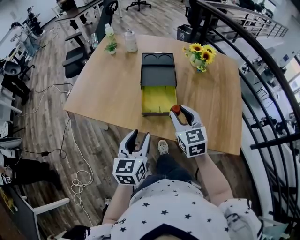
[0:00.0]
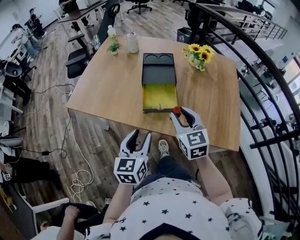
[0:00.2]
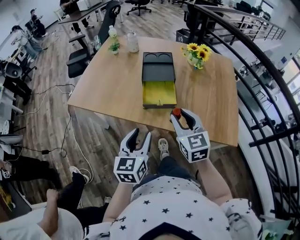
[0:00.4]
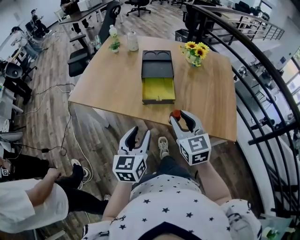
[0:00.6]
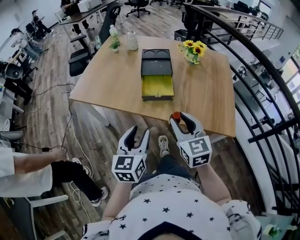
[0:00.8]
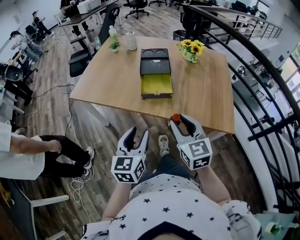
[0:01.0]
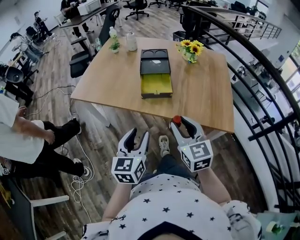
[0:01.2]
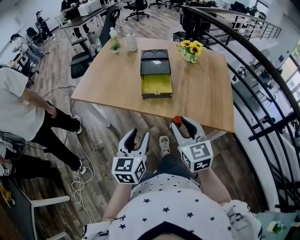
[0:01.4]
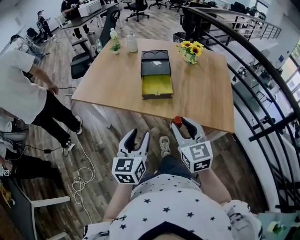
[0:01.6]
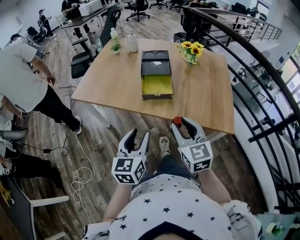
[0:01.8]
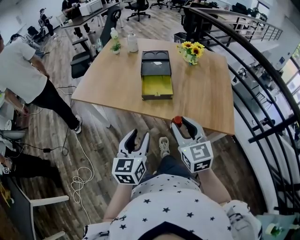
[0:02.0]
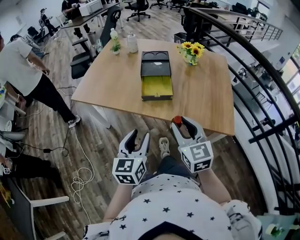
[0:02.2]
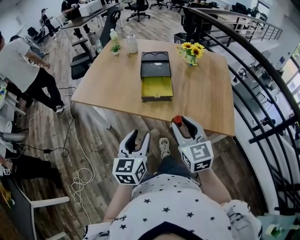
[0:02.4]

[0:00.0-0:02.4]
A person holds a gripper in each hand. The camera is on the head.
0:00.0 to 0:01.2: The grippers both shift backward by about 20 cm.
0:01.2 to 0:02.4: The two grippers keep their place.

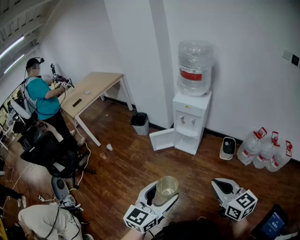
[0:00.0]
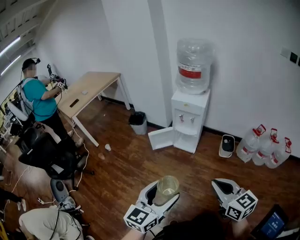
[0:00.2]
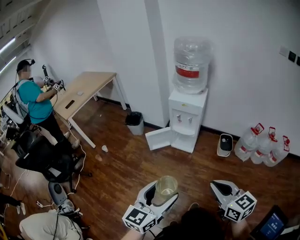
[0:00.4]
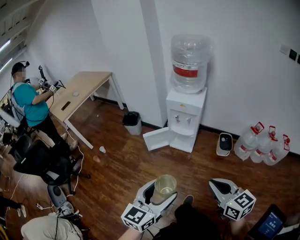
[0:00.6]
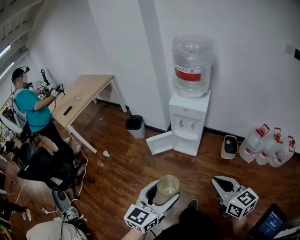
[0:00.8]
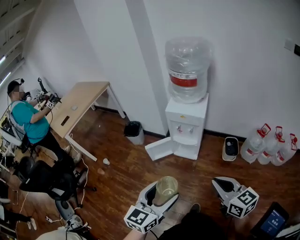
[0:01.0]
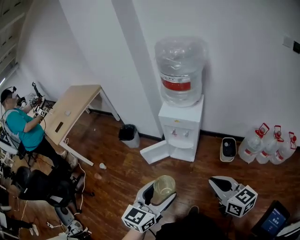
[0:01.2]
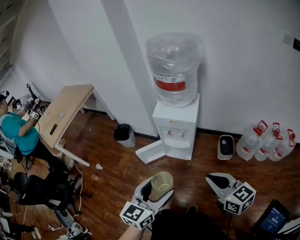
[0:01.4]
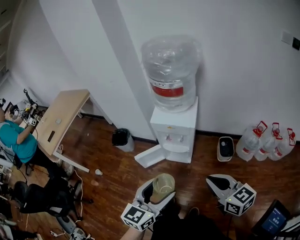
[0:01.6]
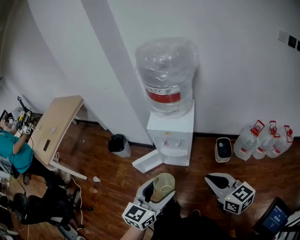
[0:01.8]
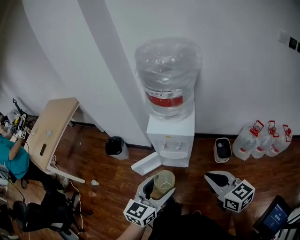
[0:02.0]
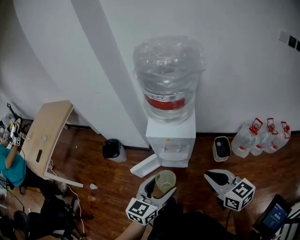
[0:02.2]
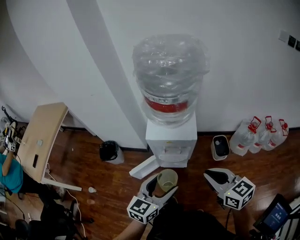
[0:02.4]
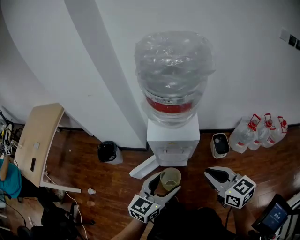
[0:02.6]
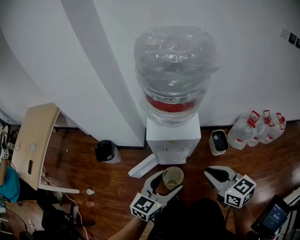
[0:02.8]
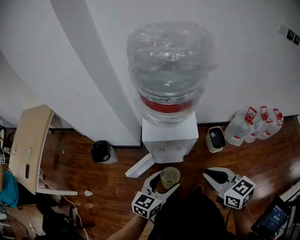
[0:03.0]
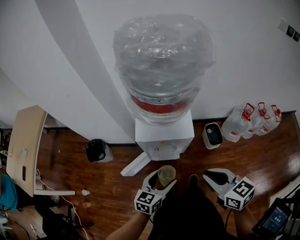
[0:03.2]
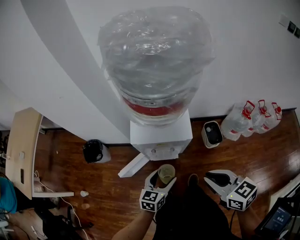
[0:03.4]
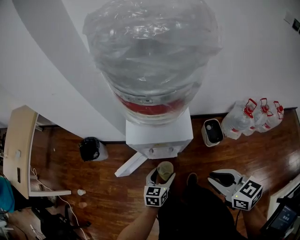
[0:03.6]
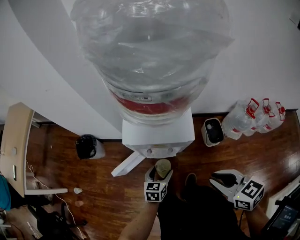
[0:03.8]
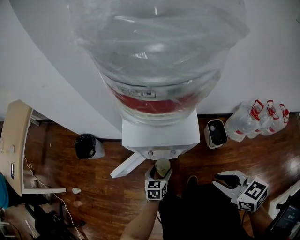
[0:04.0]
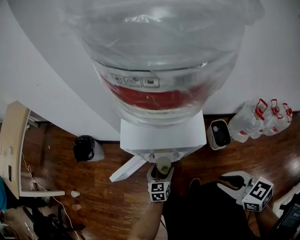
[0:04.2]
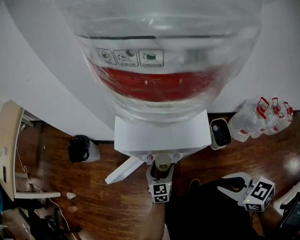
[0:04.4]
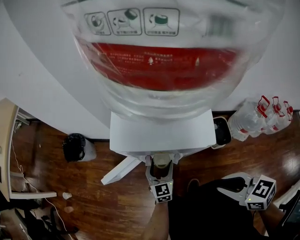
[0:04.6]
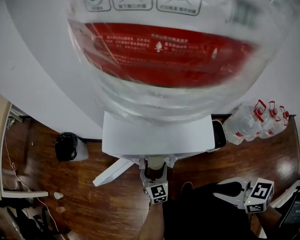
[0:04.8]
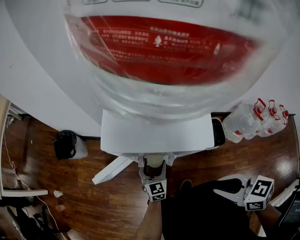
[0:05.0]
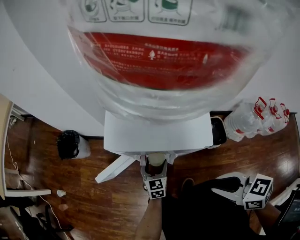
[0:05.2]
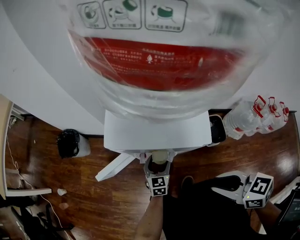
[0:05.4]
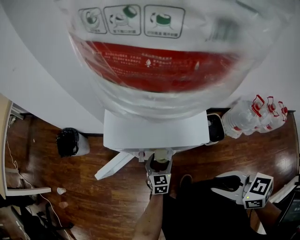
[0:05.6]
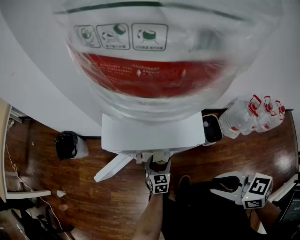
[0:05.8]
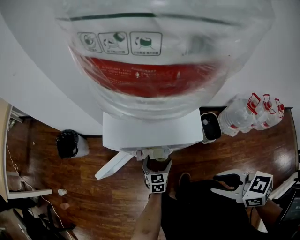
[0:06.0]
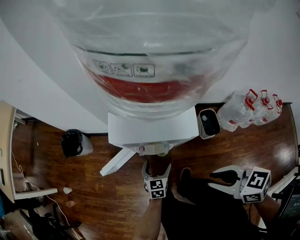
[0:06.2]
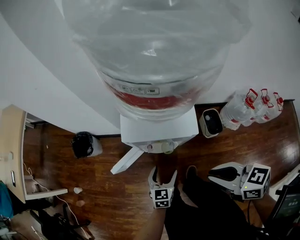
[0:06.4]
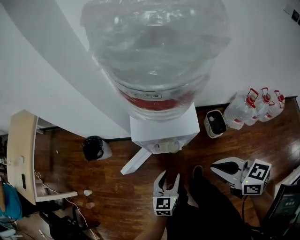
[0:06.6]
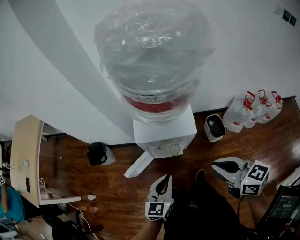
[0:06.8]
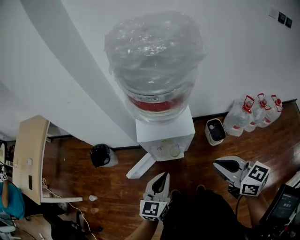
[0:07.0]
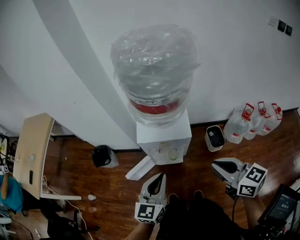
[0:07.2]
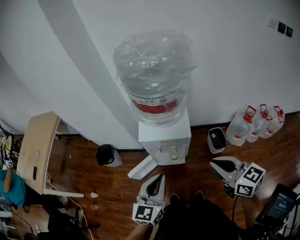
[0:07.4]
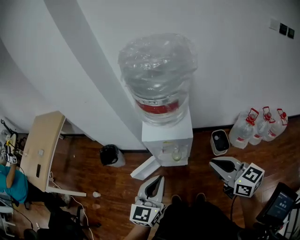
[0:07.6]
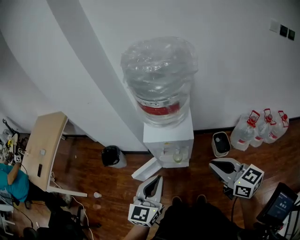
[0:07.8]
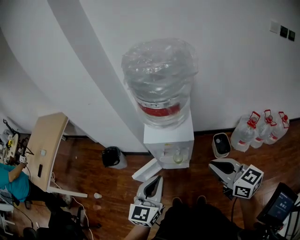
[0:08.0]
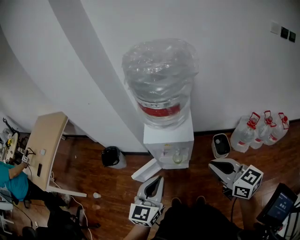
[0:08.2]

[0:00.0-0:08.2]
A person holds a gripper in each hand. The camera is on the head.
0:00.0 to 0:01.6: Both grippers move forward, about 30 cm.
0:01.6 to 0:03.2: The right gripper travels forward and to the left by roughly 20 cm; the left gripper moves forward and downward, some 30 cm, and turns by roughly 20 degrees.
0:03.2 to 0:05.0: The left gripper heads downward, covering approximately 35 cm, and changes its angle by about 30 degrees. Meanwhile the right gripper heads downward, covering roughly 25 cm, and turns by approximately 20 degrees.
0:05.0 to 0:06.6: The right gripper shifts approximately 20 cm upward, and closes its fingers. The left gripper heads upward and backward, covering approximately 30 cm.
0:06.6 to 0:08.2: The left gripper shifts about 25 cm upward, and closes up; the right gripper moves upward and backward, roughly 15 cm.

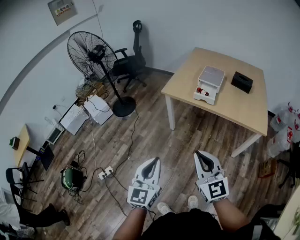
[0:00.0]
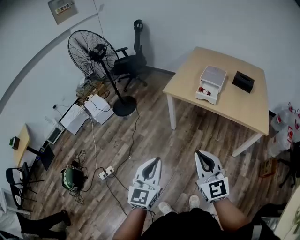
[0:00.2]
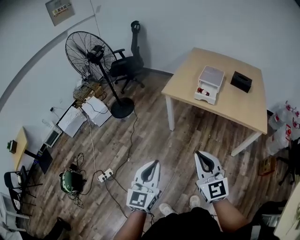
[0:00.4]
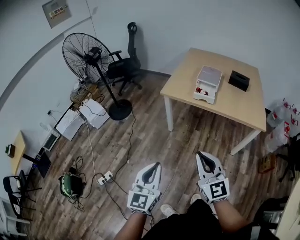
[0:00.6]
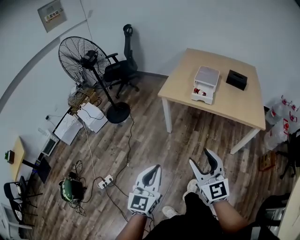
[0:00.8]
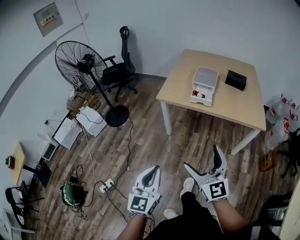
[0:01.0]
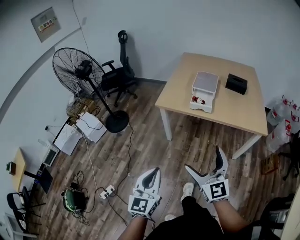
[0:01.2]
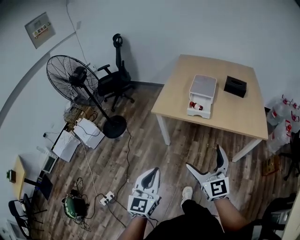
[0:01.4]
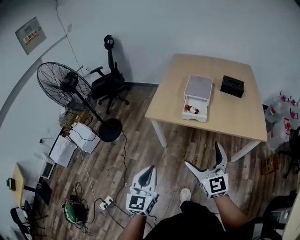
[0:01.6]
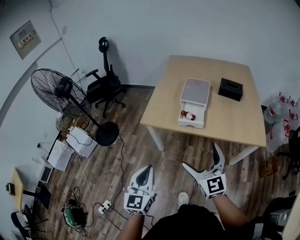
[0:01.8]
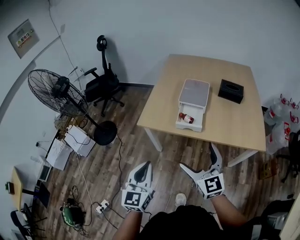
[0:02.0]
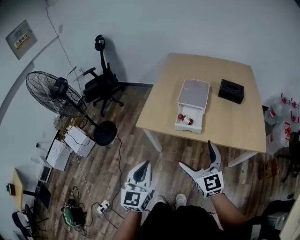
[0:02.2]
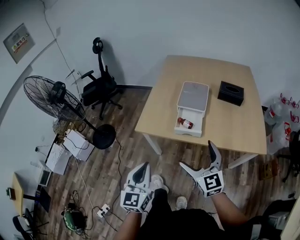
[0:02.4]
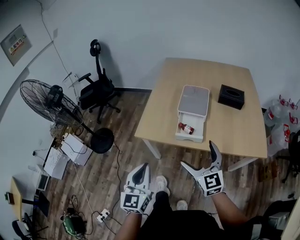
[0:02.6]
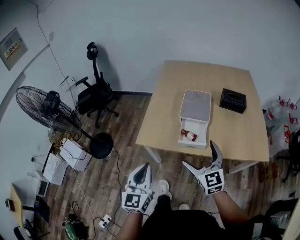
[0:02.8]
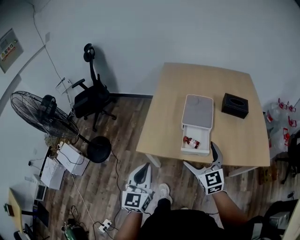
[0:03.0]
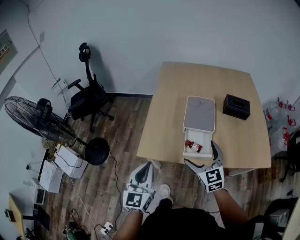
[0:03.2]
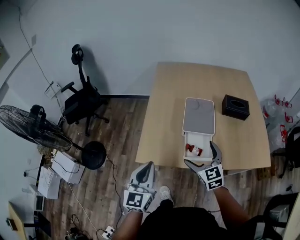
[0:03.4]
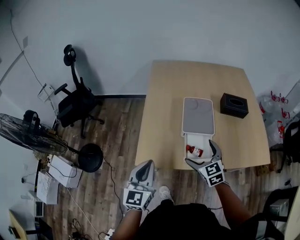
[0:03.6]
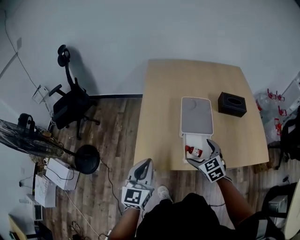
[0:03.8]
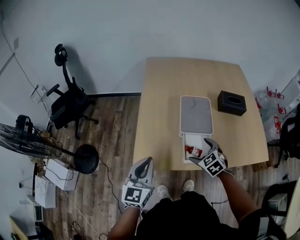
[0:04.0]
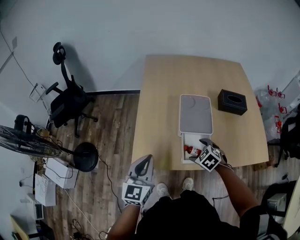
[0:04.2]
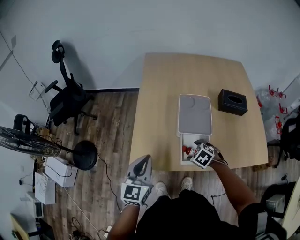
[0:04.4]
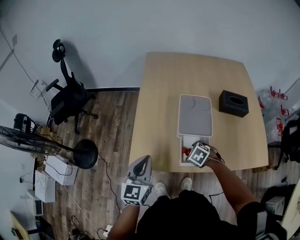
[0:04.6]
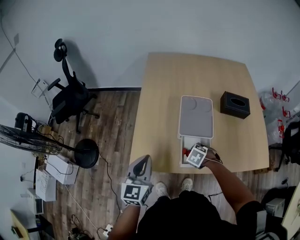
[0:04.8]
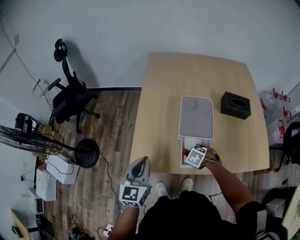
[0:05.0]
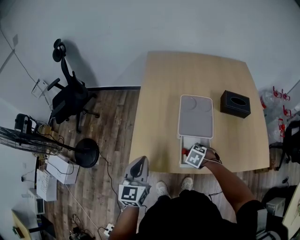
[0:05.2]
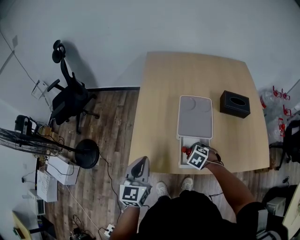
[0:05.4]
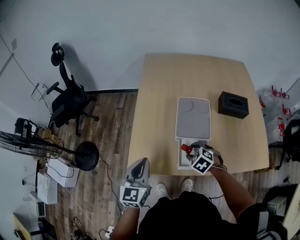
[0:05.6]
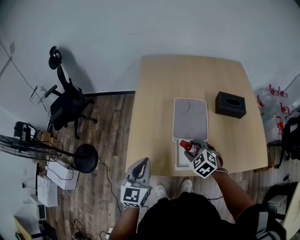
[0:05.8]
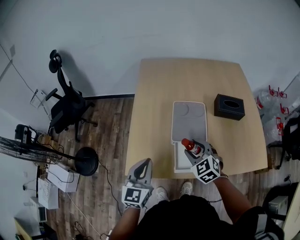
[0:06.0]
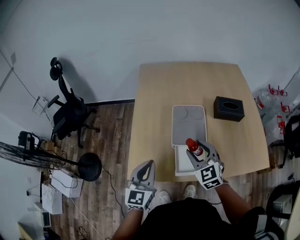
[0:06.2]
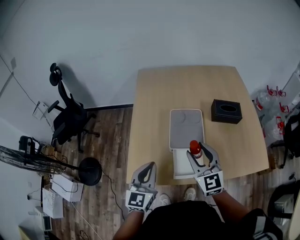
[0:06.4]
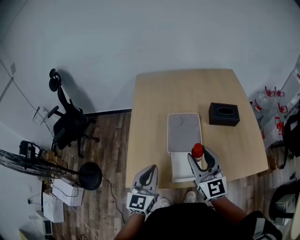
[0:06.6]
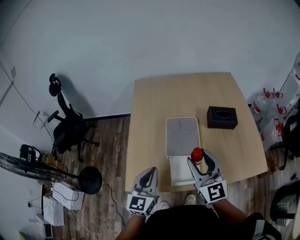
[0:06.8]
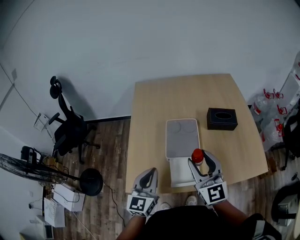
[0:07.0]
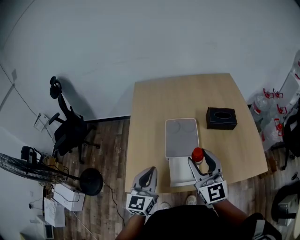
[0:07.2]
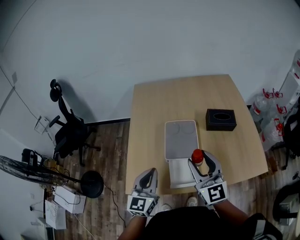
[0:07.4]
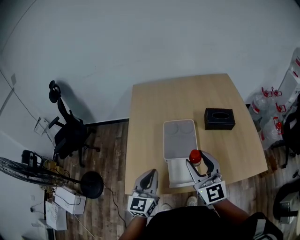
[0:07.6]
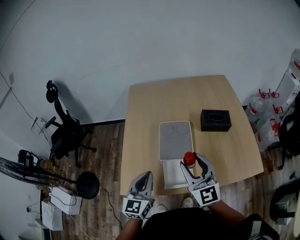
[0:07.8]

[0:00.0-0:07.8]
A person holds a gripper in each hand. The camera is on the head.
0:00.0 to 0:01.6: The grippers both shift forward by roughly 20 cm. The right gripper opens its fingers.
0:01.6 to 0:03.2: Both grippers travel together forward, roughly 30 cm.
0:03.2 to 0:04.6: The right gripper shifts some 25 cm downward and forward, tilts its fingers some 60 degrees downward, and closes its fingers, while the left gripper is displaced forward by some 15 cm.
0:04.6 to 0:06.2: The right gripper moves upward, some 20 cm, and tips its fingers upward by about 50 degrees; the left gripper ends up approximately 5 cm from where it was.
0:06.2 to 0:07.8: The left gripper shifts roughly 5 cm to the right; the right gripper goes some 10 cm upward, and turns by approximately 30 degrees.

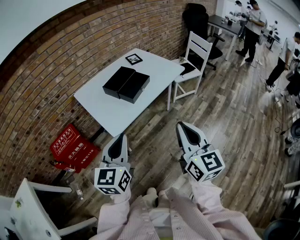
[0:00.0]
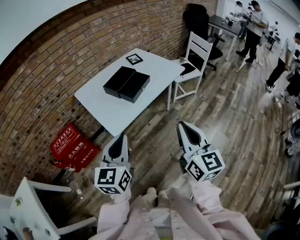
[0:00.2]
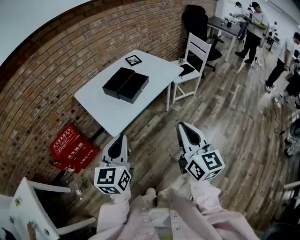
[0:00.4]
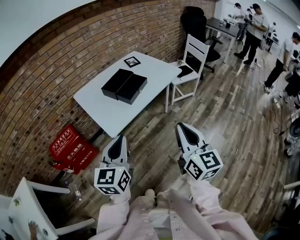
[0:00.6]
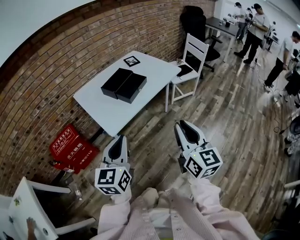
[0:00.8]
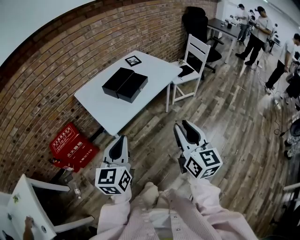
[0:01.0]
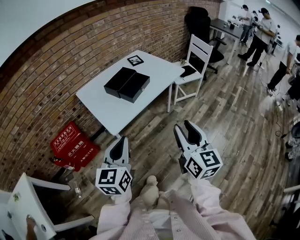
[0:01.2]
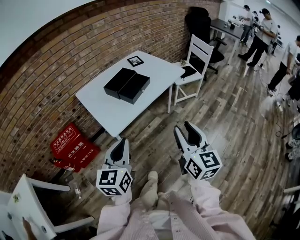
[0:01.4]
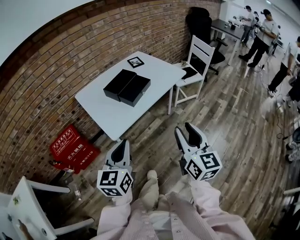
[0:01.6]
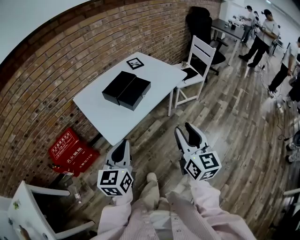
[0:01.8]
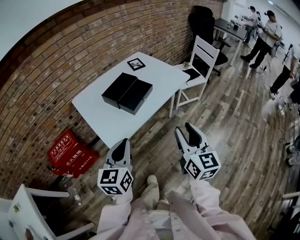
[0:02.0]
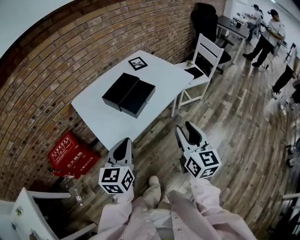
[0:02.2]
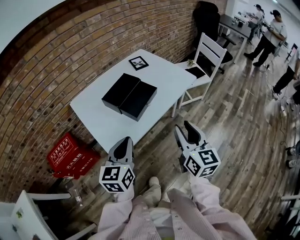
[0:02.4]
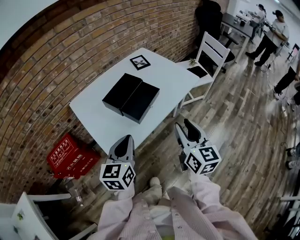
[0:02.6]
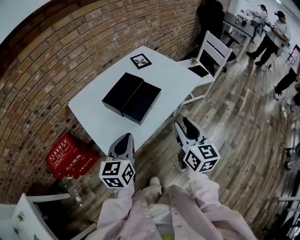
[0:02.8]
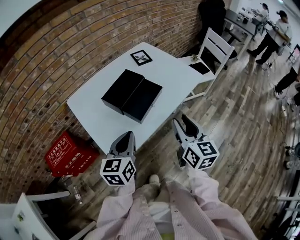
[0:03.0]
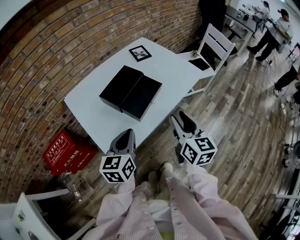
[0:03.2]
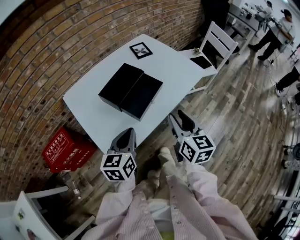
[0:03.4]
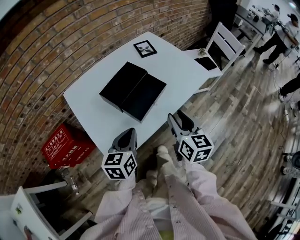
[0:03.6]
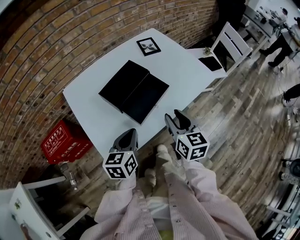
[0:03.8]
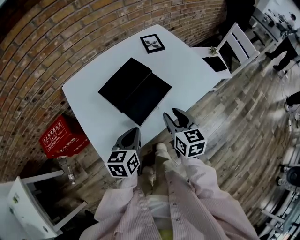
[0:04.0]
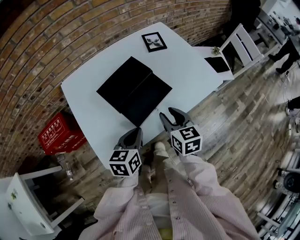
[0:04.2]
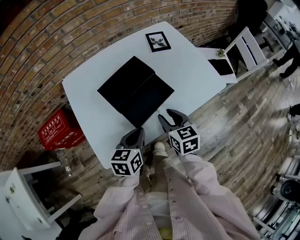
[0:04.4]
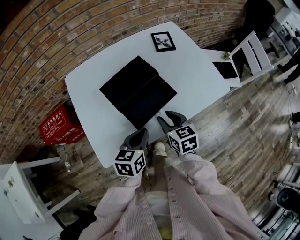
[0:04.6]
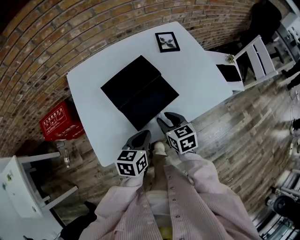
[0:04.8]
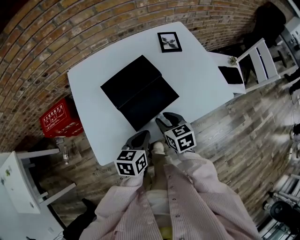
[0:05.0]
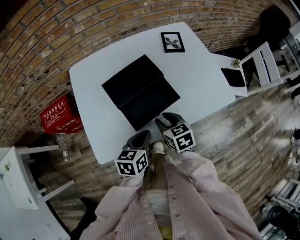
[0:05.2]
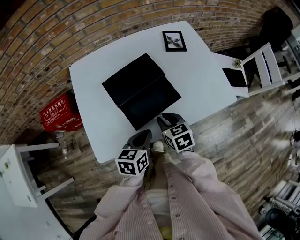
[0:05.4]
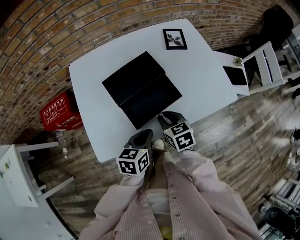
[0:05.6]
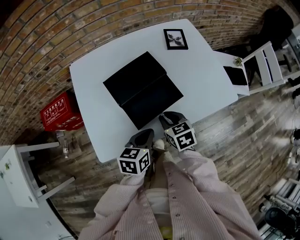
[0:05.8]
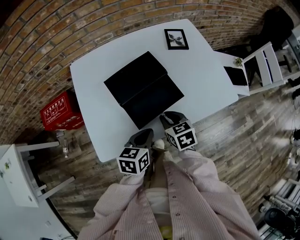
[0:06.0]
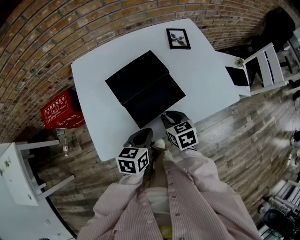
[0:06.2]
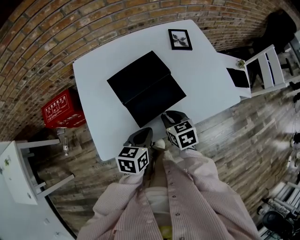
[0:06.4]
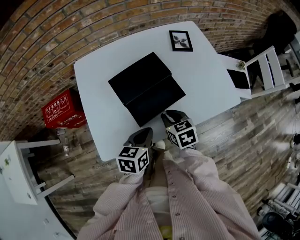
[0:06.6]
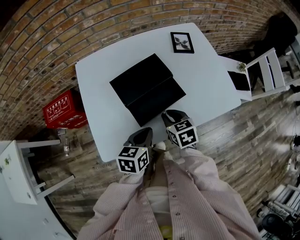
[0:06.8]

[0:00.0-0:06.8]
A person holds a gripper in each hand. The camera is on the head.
0:00.0 to 0:01.4: The right gripper opens up.
0:01.4 to 0:02.8: Both grippers travel together forward, roughly 25 cm.
0:02.8 to 0:04.0: The right gripper heads forward and downward, covering approximately 20 cm, and swivels about 20 degrees. The left gripper goes approximately 15 cm downward and forward.
0:04.0 to 0:05.4: The left gripper goes some 10 cm to the right and downward. Meanwhile the right gripper moves downward, about 10 cm, and swivels approximately 30 degrees.
0:05.4 to 0:06.8: The grippers stay close to where they were, moving slightly.
